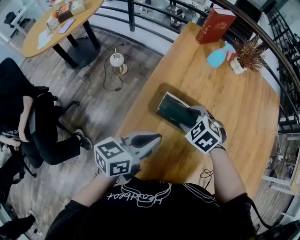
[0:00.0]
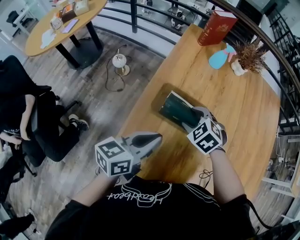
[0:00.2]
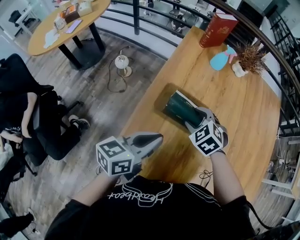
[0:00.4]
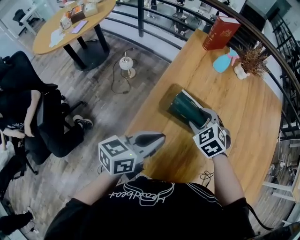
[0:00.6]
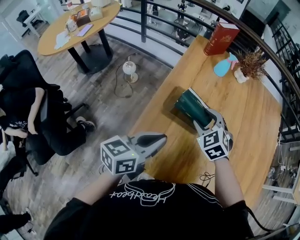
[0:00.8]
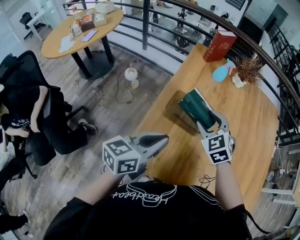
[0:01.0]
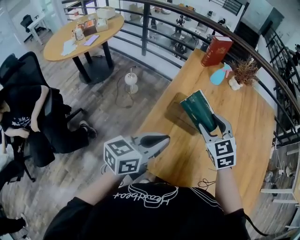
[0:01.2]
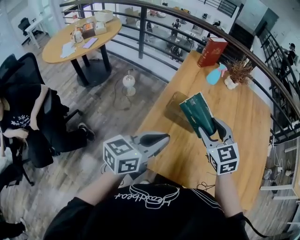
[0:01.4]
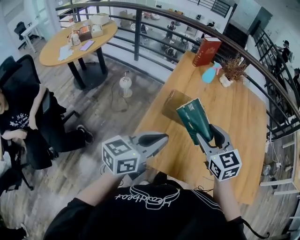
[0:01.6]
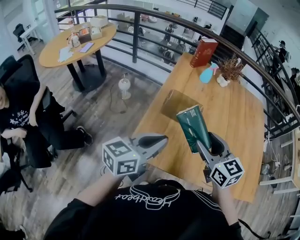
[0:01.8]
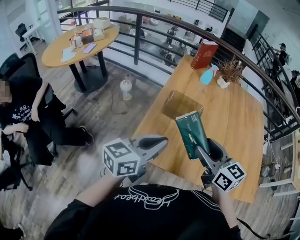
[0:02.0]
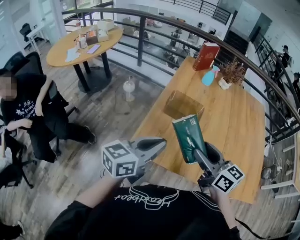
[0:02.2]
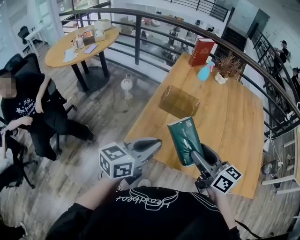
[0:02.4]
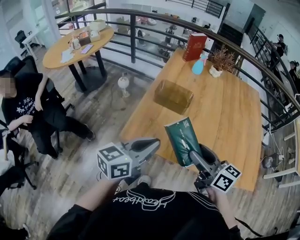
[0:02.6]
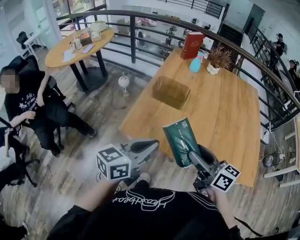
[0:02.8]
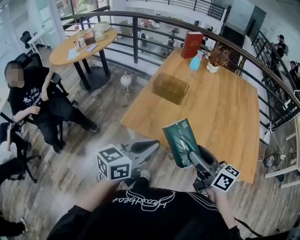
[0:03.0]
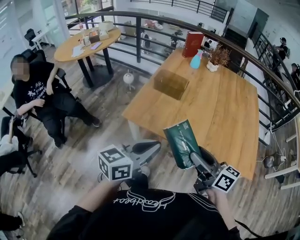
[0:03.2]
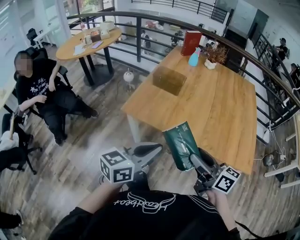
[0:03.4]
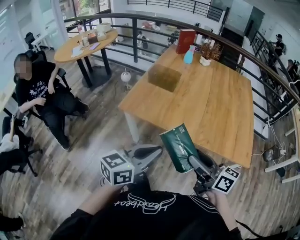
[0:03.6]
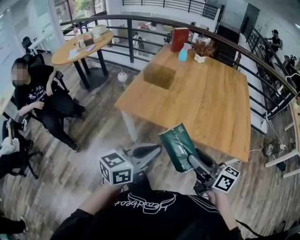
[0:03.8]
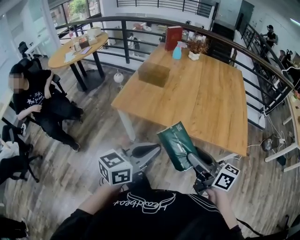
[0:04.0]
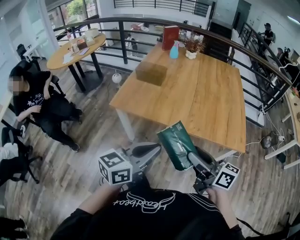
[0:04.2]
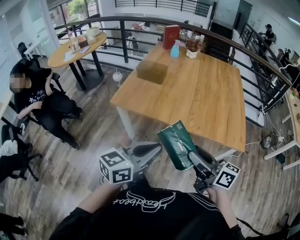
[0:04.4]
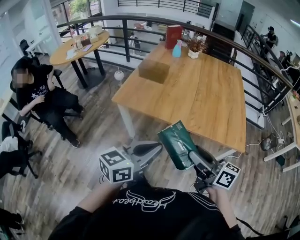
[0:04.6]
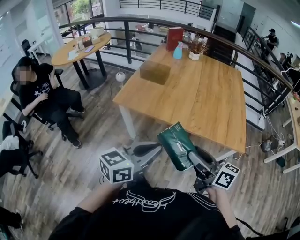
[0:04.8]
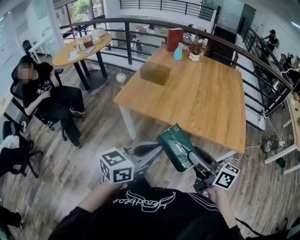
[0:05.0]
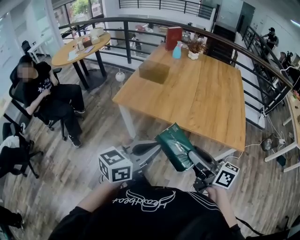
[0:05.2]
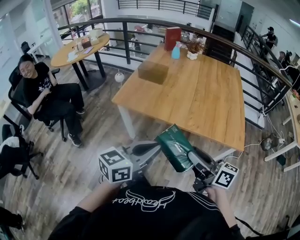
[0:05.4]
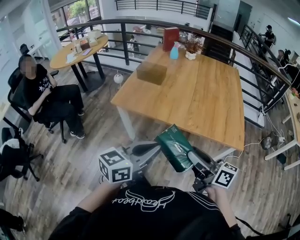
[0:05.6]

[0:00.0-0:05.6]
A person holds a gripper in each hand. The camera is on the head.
0:00.0 to 0:01.4: The right gripper shifts some 20 cm upward and backward, and points its fingers roughly 40 degrees further upward. Meanwhile the left gripper shifts approximately 15 cm backward and upward.
0:01.4 to 0:02.8: The right gripper shifts about 30 cm backward, and rolls clockwise, seen from behind, by approximately 50 degrees. The left gripper is displaced backward and to the right by roughly 20 cm.
0:02.8 to 0:04.2: The two grippers go approximately 30 cm backward and to the right.
0:04.2 to 0:05.6: The grippers make only small movements.

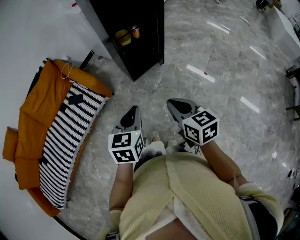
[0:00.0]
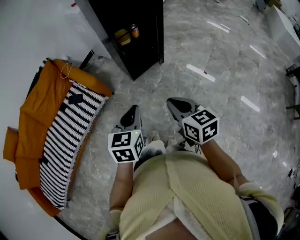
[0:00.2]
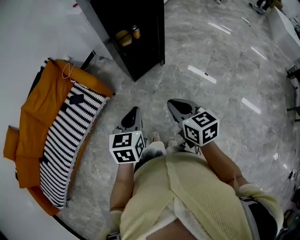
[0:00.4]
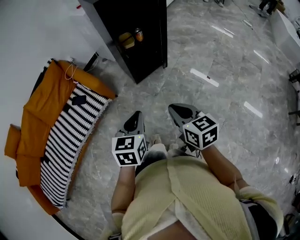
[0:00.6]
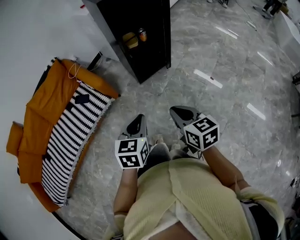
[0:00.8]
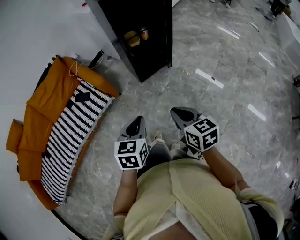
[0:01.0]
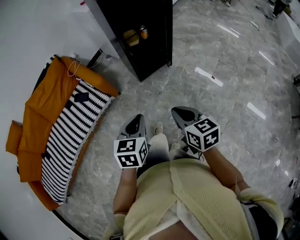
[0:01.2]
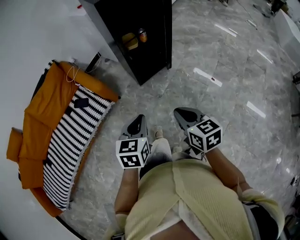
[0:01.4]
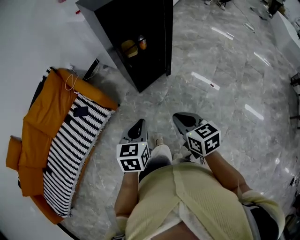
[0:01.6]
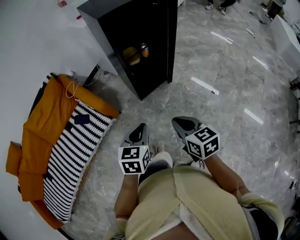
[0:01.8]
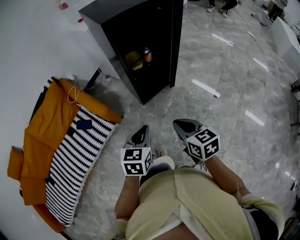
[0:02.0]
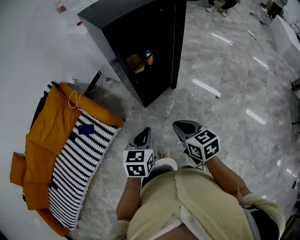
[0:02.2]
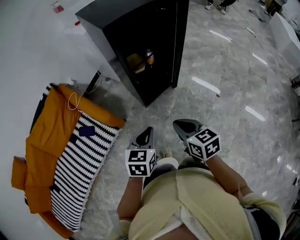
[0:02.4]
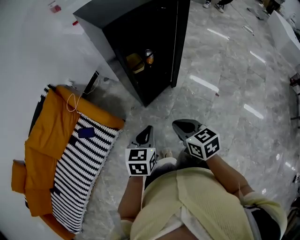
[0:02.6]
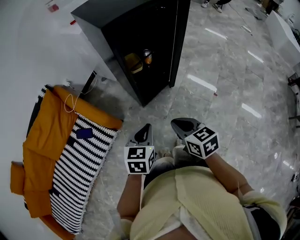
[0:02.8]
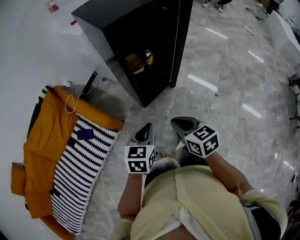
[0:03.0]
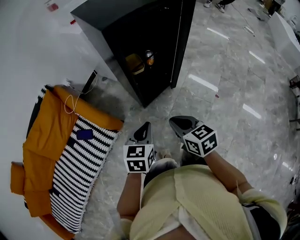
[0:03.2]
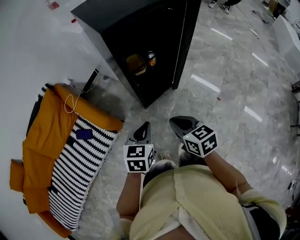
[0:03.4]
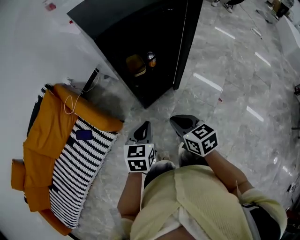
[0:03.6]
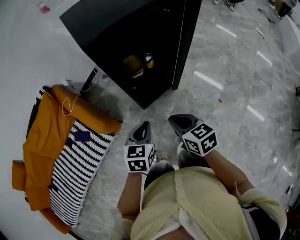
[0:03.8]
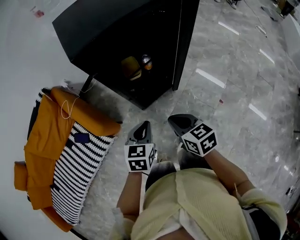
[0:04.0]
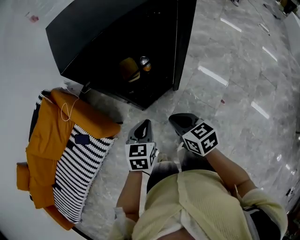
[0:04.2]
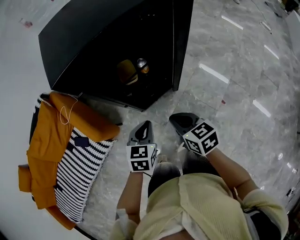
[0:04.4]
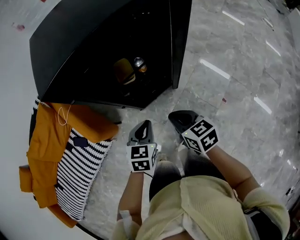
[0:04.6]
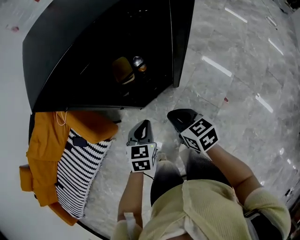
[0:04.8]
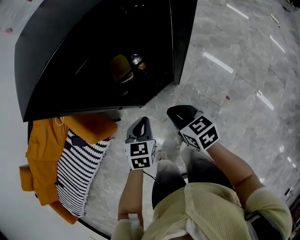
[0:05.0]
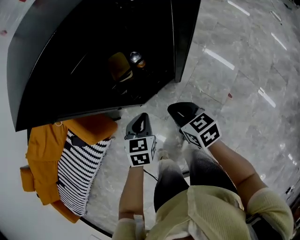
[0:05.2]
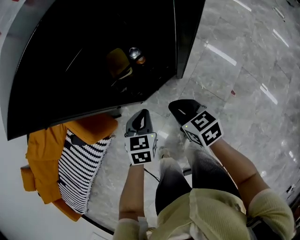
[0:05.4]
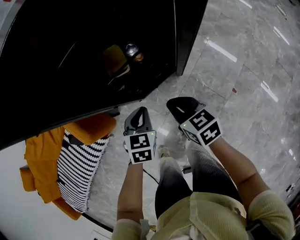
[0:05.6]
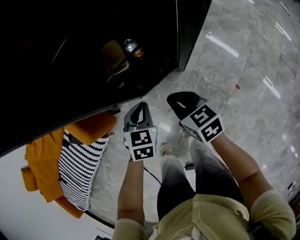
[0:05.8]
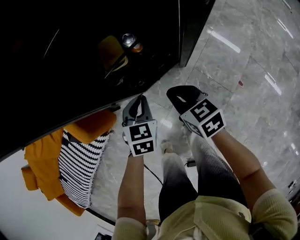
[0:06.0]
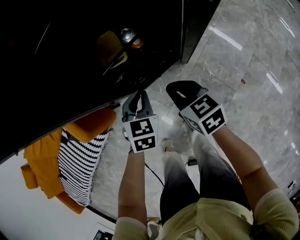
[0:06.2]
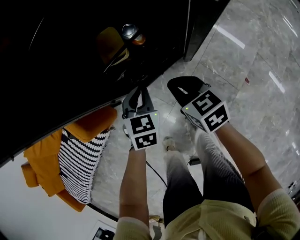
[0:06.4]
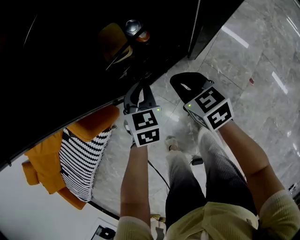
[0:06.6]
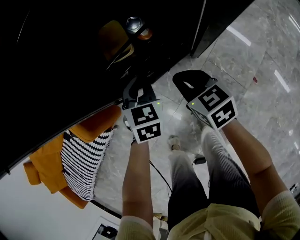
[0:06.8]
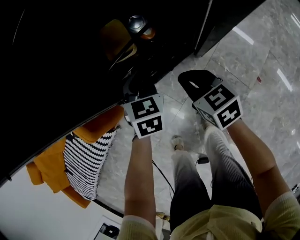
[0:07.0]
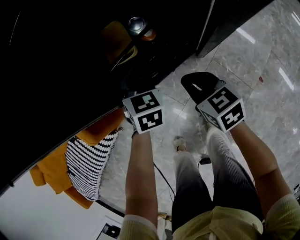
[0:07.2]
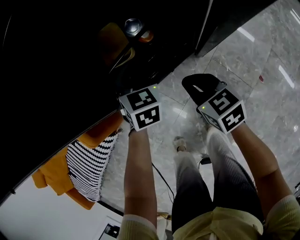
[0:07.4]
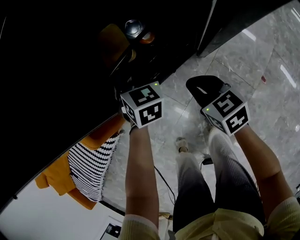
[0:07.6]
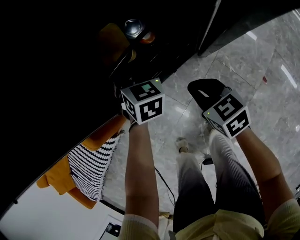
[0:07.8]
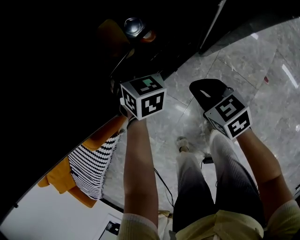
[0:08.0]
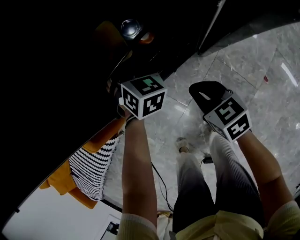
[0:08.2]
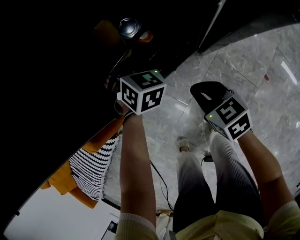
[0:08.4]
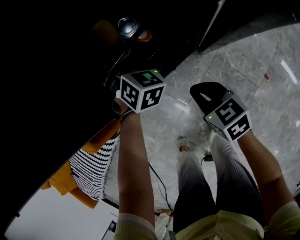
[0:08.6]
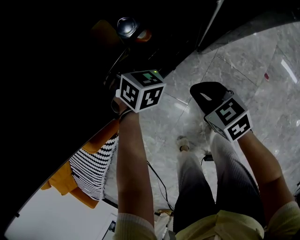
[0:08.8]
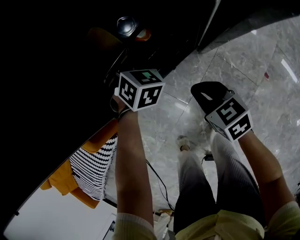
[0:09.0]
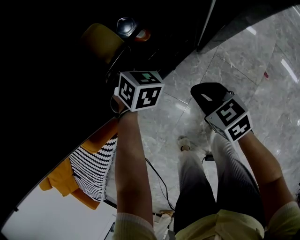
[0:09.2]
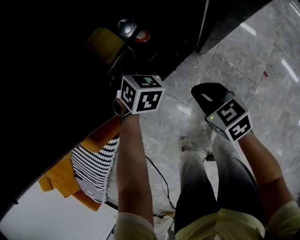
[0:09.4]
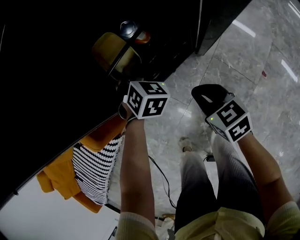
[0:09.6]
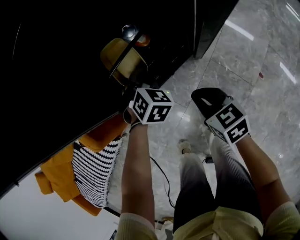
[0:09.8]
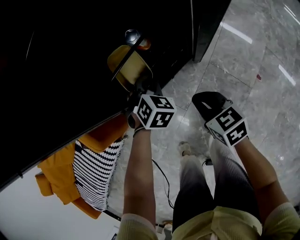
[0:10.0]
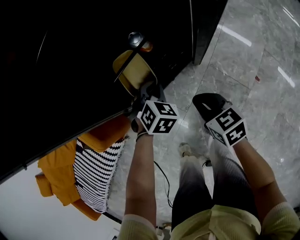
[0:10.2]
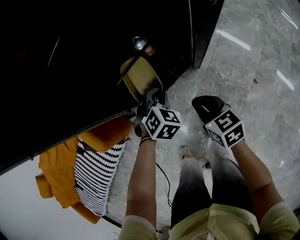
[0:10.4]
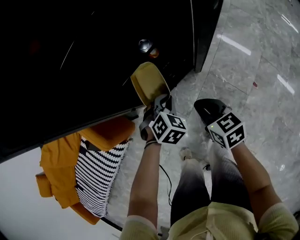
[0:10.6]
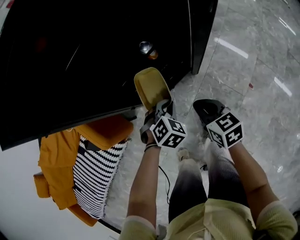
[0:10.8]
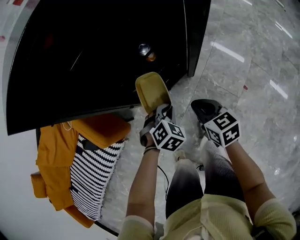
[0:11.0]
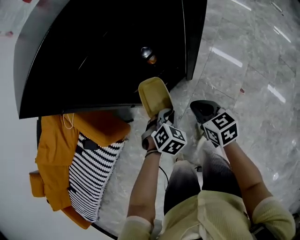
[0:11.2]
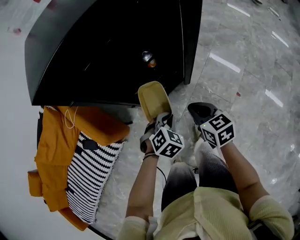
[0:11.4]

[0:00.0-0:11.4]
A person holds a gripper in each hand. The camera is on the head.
0:00.0 to 0:01.4: The grippers stay close to where they were, moving slightly.
0:01.4 to 0:02.8: Both grippers travel together forward, about 20 cm.
0:02.8 to 0:04.2: The grippers both shift forward and to the right by about 15 cm.
0:04.2 to 0:05.6: The left gripper heads downward and forward, covering about 15 cm, while the right gripper is displaced downward, forward and to the right by about 15 cm.
0:05.6 to 0:07.2: The left gripper goes about 15 cm forward and downward. The right gripper travels downward and forward by about 15 cm.
0:07.2 to 0:08.6: The left gripper shifts roughly 10 cm forward, changes its angle by approximately 30 degrees, and opens up. The right gripper shifts by roughly 5 cm.
0:08.6 to 0:10.0: The left gripper is displaced backward by some 10 cm, and closes its fingers, while the right gripper goes about 5 cm upward.
0:10.0 to 0:11.4: The right gripper goes some 15 cm upward; the left gripper travels backward and upward by some 20 cm.

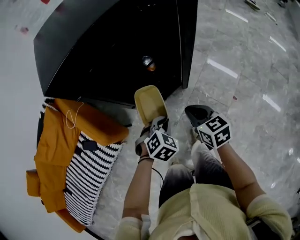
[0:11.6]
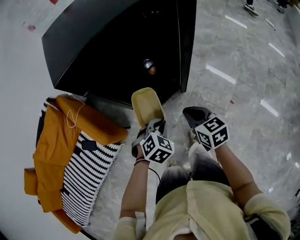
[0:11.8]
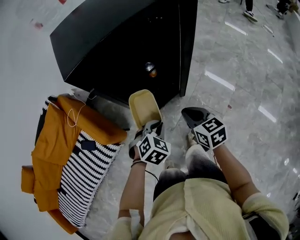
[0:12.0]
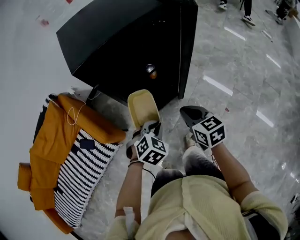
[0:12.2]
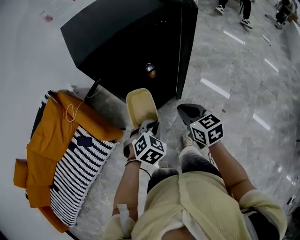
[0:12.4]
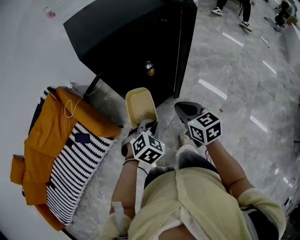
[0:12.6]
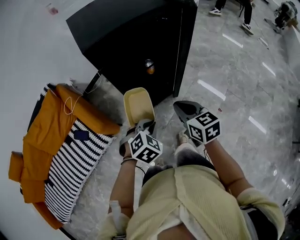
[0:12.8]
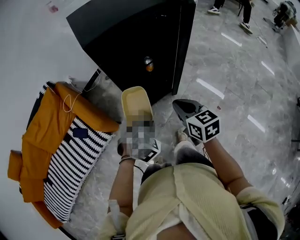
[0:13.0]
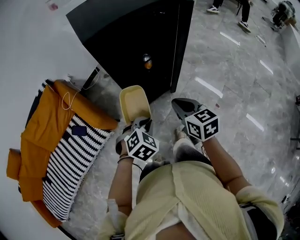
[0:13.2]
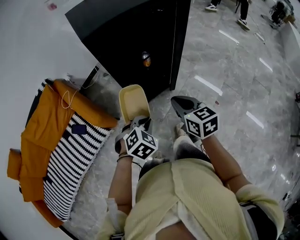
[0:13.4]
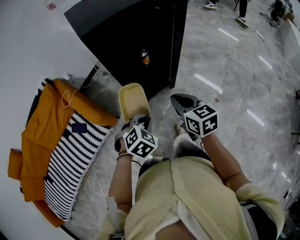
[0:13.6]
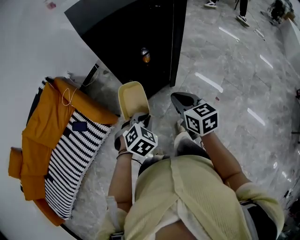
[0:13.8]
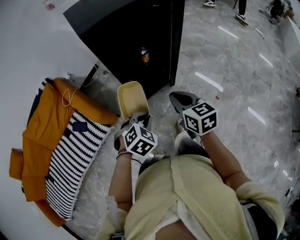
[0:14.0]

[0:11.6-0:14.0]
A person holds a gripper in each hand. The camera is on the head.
0:11.6 to 0:12.8: The right gripper moves upward, roughly 10 cm; the left gripper is displaced upward and backward by roughly 10 cm.
0:12.8 to 0:14.0: The left gripper shifts roughly 5 cm backward.

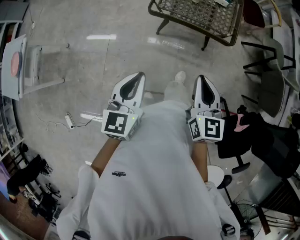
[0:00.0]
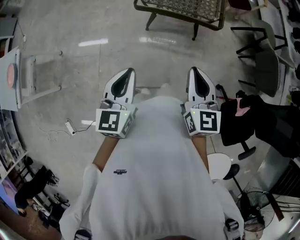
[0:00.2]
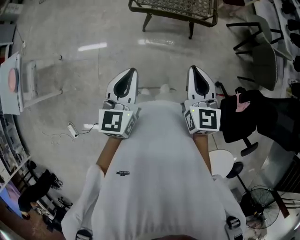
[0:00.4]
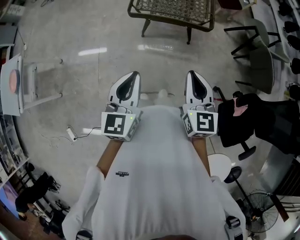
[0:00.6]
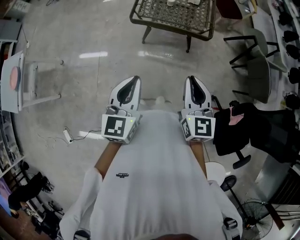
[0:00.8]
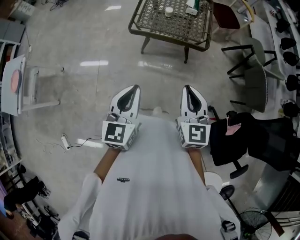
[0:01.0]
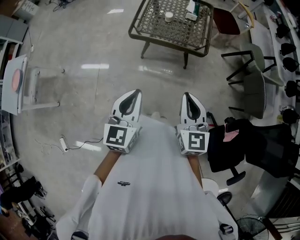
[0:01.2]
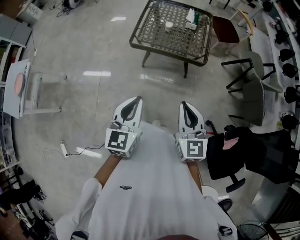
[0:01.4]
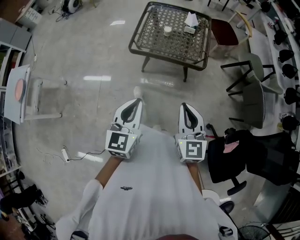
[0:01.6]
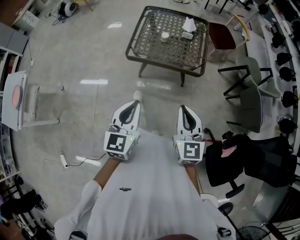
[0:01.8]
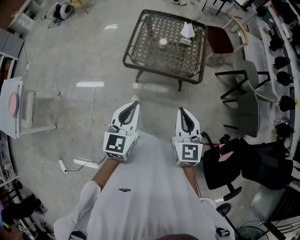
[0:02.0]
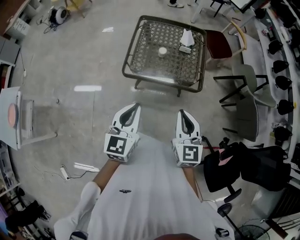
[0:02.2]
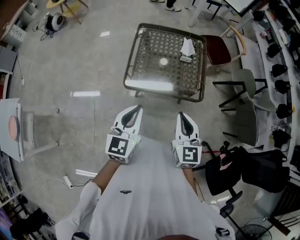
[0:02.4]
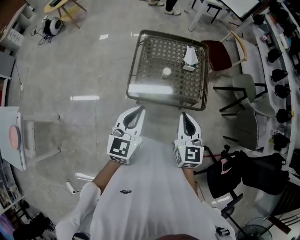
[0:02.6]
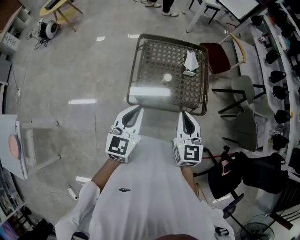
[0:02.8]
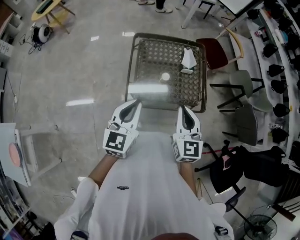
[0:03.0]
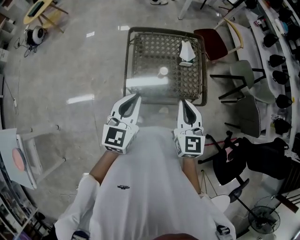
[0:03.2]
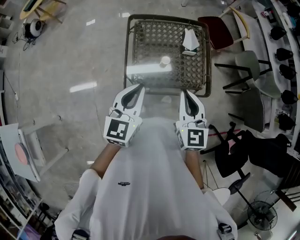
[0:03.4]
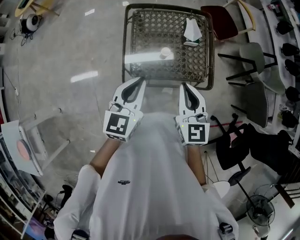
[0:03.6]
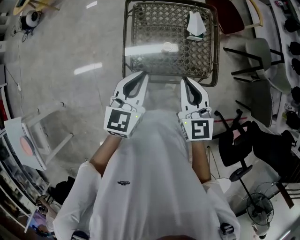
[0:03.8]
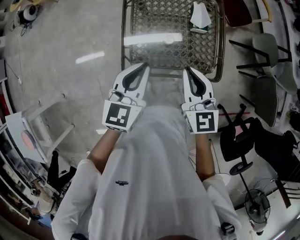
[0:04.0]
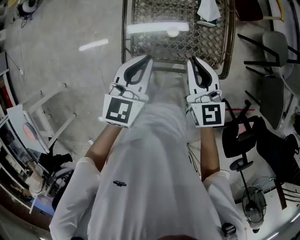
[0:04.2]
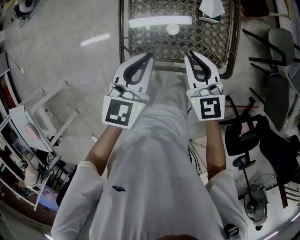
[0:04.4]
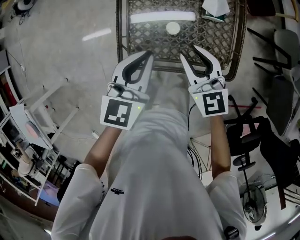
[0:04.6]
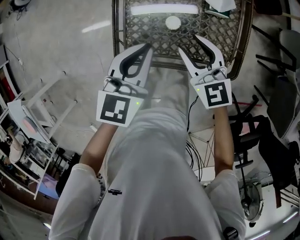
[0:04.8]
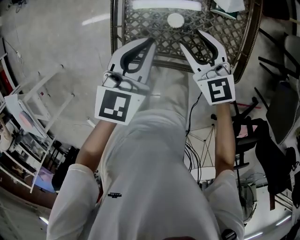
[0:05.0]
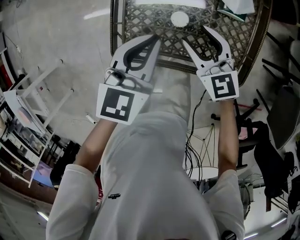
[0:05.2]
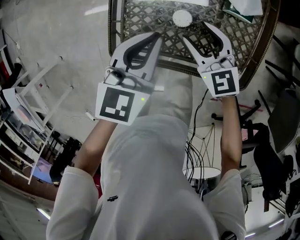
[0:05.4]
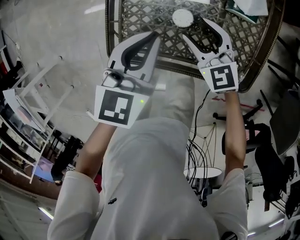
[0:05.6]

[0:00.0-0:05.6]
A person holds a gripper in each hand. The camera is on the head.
0:00.0 to 0:01.4: The grippers both shift to the right by approximately 10 cm.
0:01.4 to 0:02.8: The grippers both shift forward by about 35 cm.
0:02.8 to 0:04.2: Both grippers travel together forward and downward, about 20 cm.
0:04.2 to 0:05.6: The right gripper goes about 25 cm downward, changes its angle by some 30 degrees, and opens its fingers, while the left gripper travels downward by some 15 cm.
